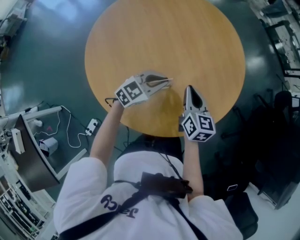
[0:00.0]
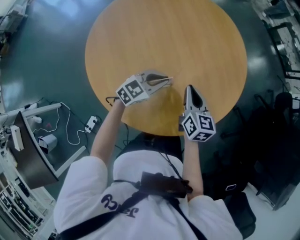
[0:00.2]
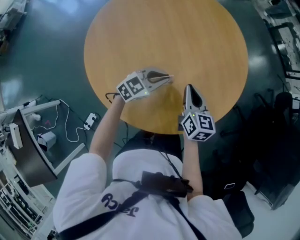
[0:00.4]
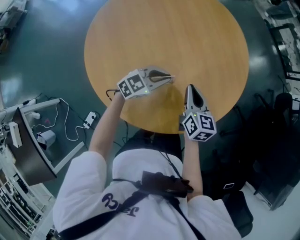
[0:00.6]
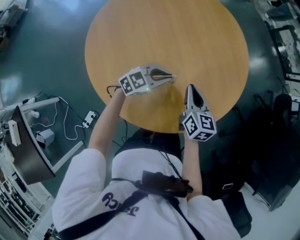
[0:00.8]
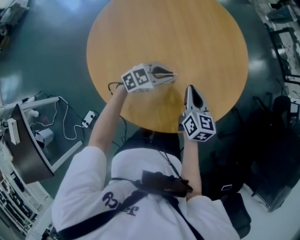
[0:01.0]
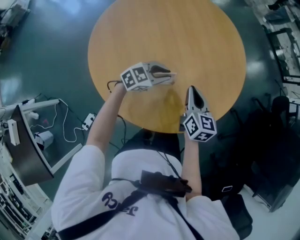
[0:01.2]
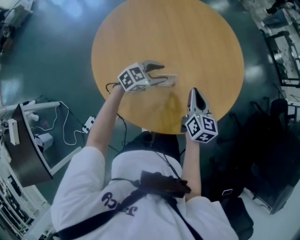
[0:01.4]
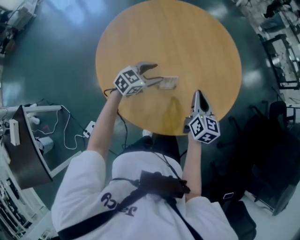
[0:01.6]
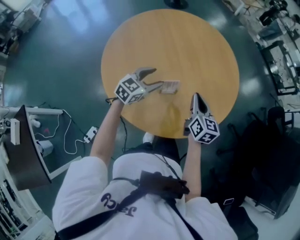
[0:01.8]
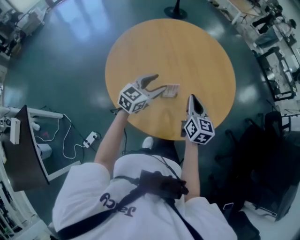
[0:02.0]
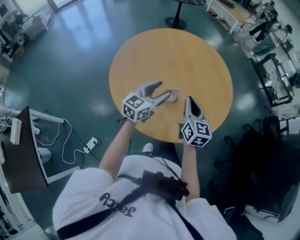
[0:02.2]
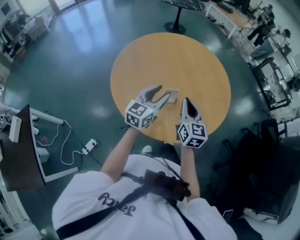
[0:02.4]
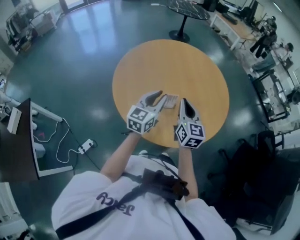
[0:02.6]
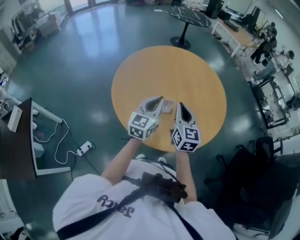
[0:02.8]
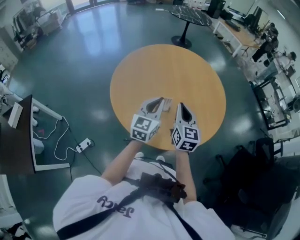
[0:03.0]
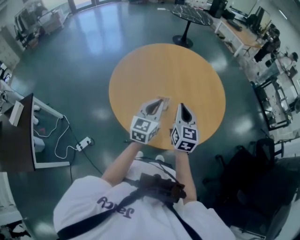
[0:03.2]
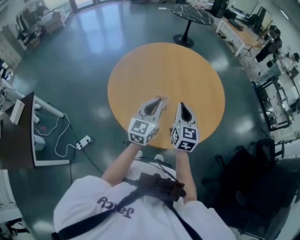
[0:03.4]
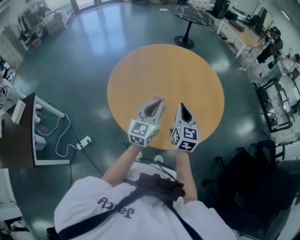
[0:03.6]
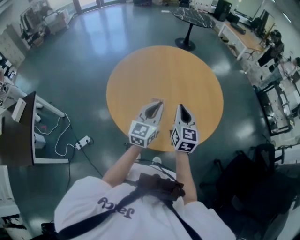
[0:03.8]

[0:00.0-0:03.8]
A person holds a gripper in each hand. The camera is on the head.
0:00.0 to 0:01.2: The grippers move only a little.
0:01.2 to 0:02.6: The grippers both shift upward by approximately 15 cm. The right gripper changes its angle by about 20 degrees. Meanwhile the left gripper rotates approximately 60 degrees, and opens, then closes once more.
0:02.6 to 0:03.8: Both grippers move to the right, approximately 5 cm.

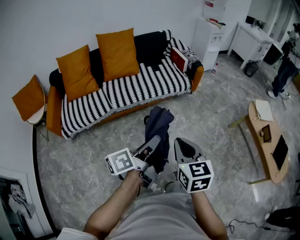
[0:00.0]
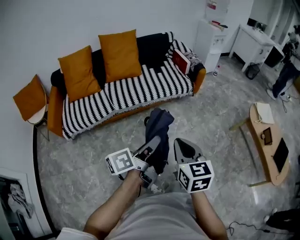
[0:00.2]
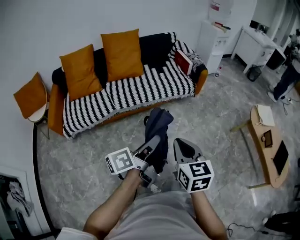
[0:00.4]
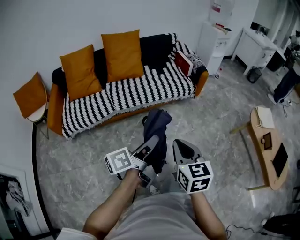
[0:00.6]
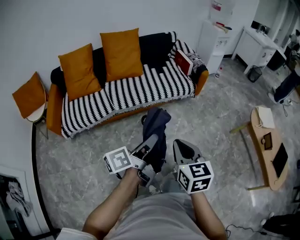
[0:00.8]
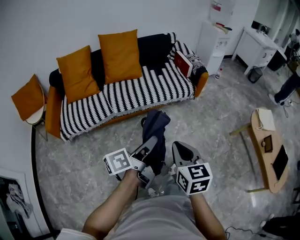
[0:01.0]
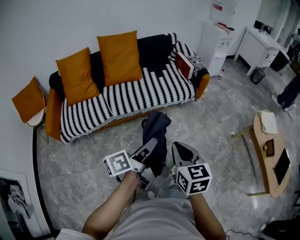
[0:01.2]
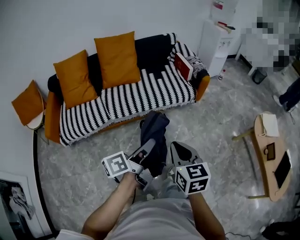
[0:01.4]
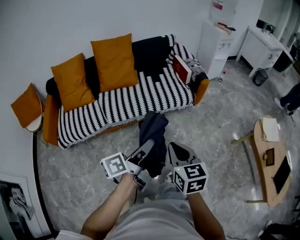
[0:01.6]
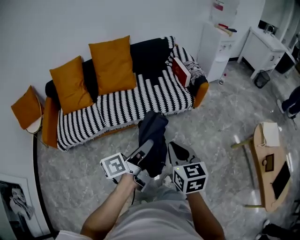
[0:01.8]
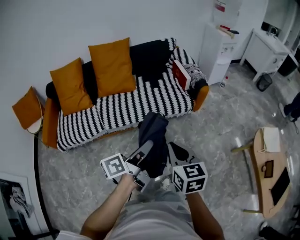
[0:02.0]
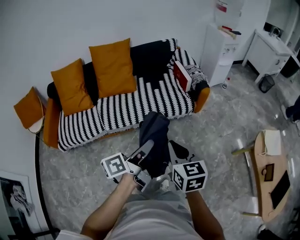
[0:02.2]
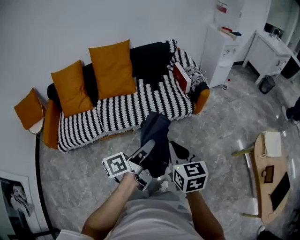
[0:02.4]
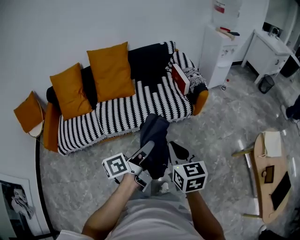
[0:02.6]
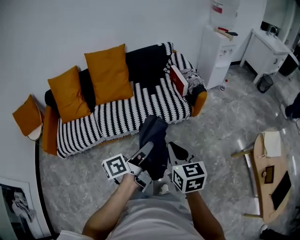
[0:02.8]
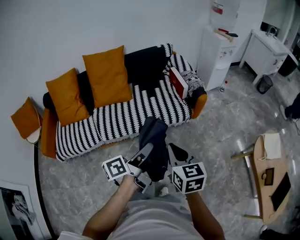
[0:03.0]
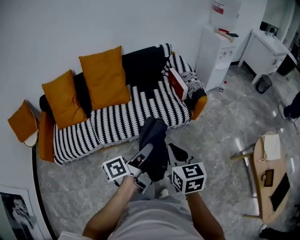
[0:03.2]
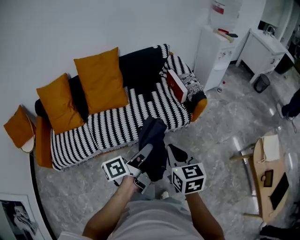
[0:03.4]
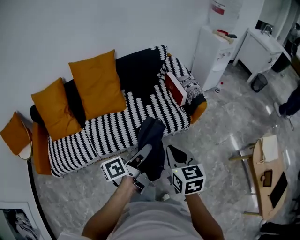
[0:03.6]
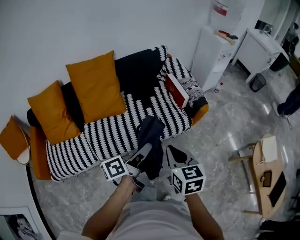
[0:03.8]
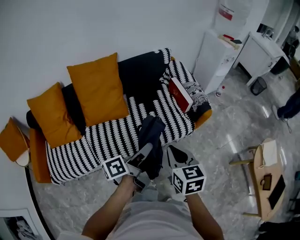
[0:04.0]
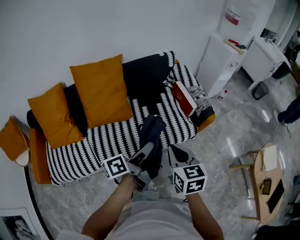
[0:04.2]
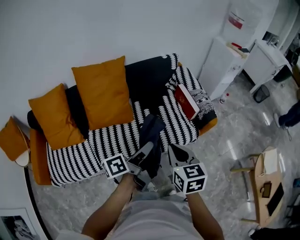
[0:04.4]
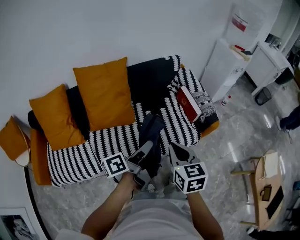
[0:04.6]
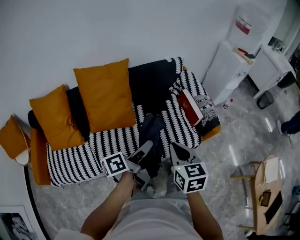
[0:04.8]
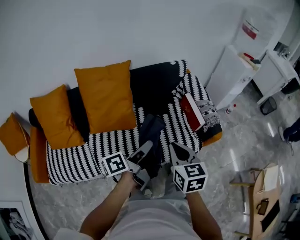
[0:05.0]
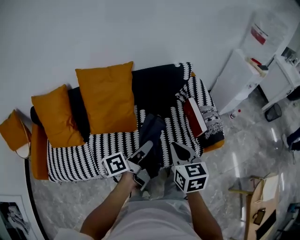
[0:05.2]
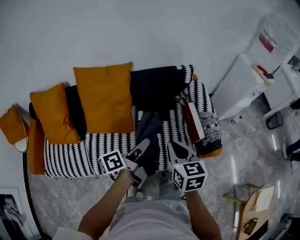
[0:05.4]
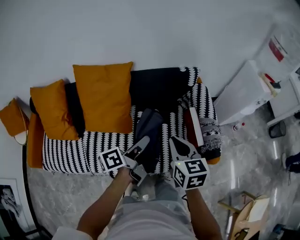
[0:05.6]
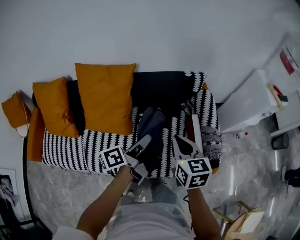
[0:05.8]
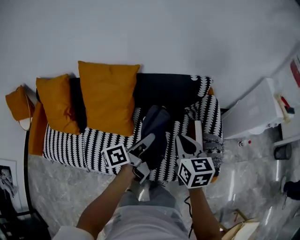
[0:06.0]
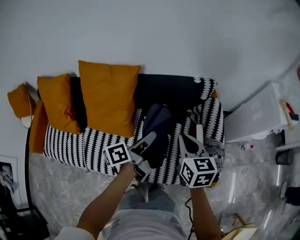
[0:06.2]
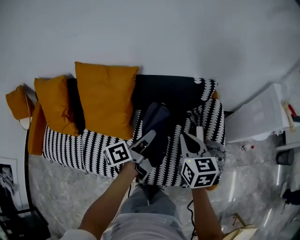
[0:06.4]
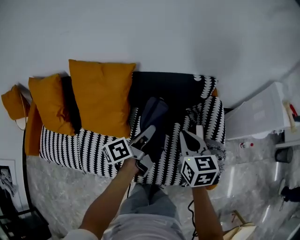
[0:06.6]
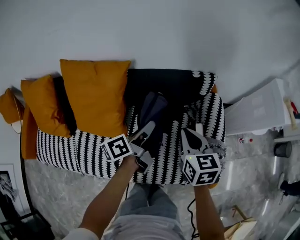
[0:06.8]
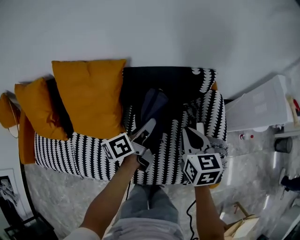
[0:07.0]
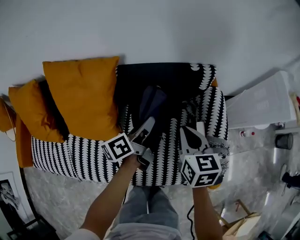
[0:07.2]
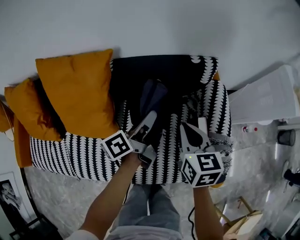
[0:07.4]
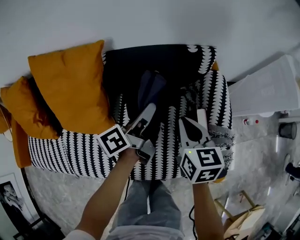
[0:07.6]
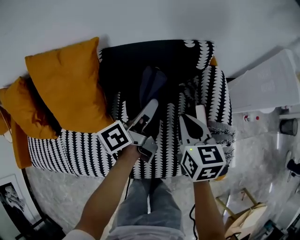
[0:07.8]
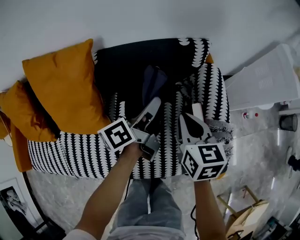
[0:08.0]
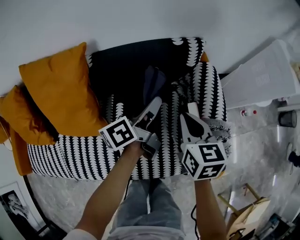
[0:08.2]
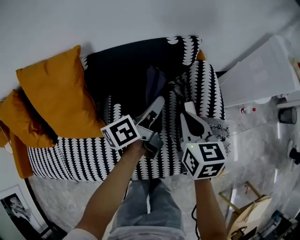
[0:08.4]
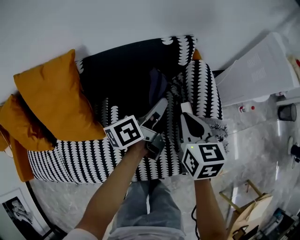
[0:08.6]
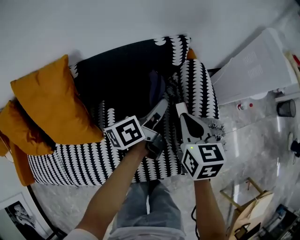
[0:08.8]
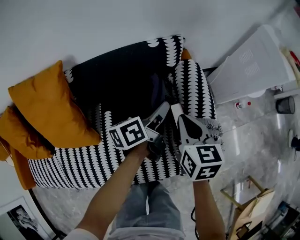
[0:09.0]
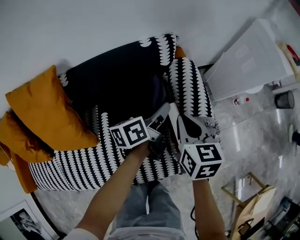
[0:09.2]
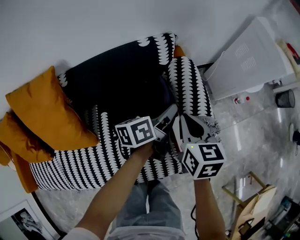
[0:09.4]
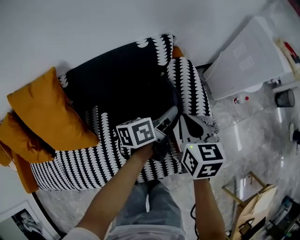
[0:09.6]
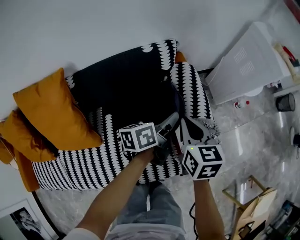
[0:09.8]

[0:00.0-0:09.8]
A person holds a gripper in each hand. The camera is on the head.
0:00.0 to 0:01.4: The grippers both shift forward by approximately 15 cm.
0:01.4 to 0:02.8: Both grippers move forward and to the right, about 20 cm.
0:02.8 to 0:04.2: Both grippers move forward and to the left, roughly 30 cm.
0:04.2 to 0:05.6: The two grippers go roughly 25 cm forward.
0:05.6 to 0:07.0: Both grippers move forward and downward, approximately 25 cm.
0:07.0 to 0:08.4: The right gripper is displaced downward and to the right by roughly 10 cm; the left gripper moves to the right and downward, approximately 15 cm.
0:08.4 to 0:09.8: The left gripper goes some 15 cm to the right, and turns by approximately 20 degrees, while the right gripper goes approximately 10 cm to the right.

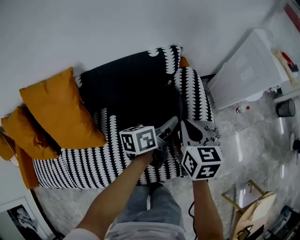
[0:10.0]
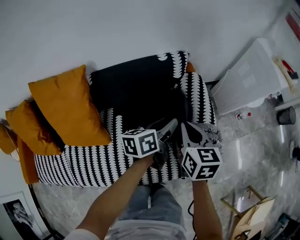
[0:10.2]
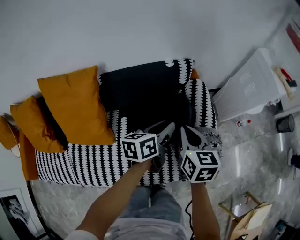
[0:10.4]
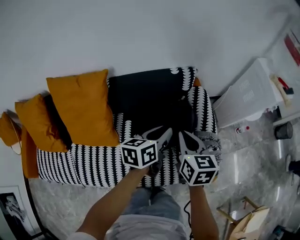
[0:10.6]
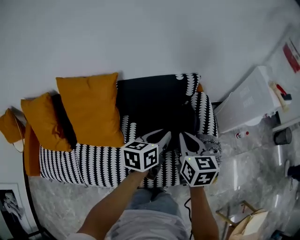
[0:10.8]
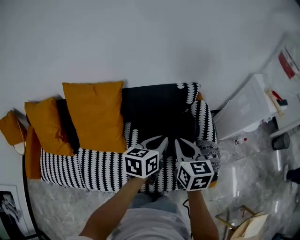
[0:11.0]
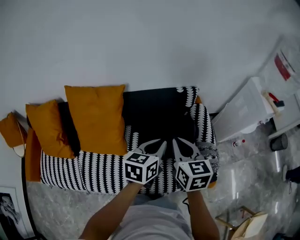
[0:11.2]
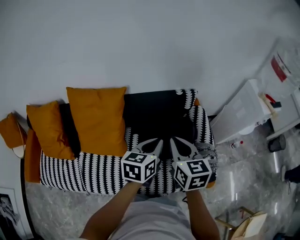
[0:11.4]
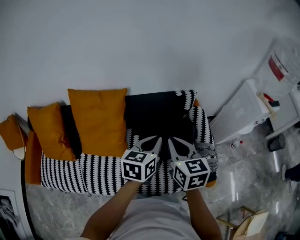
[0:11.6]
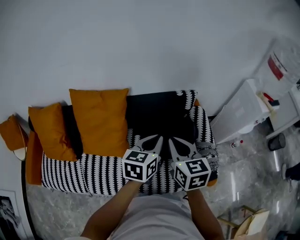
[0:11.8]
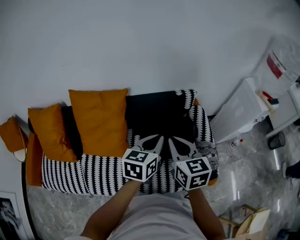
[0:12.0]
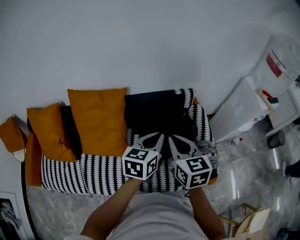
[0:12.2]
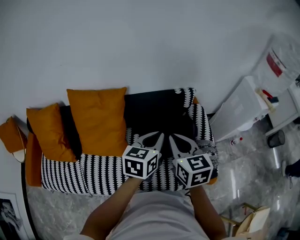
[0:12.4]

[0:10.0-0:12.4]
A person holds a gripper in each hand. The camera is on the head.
0:10.0 to 0:11.2: Both grippers move upward, to the left and backward, some 25 cm. The left gripper turns by about 30 degrees, and closes.
0:11.2 to 0:12.4: The grippers stay close to where they were, moving slightly.

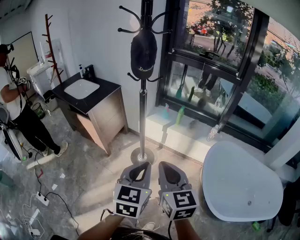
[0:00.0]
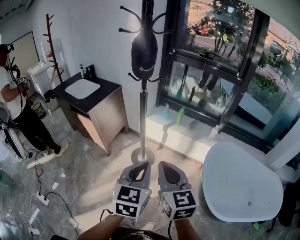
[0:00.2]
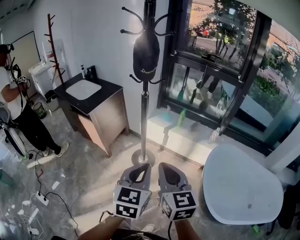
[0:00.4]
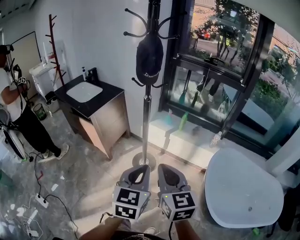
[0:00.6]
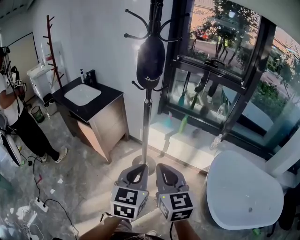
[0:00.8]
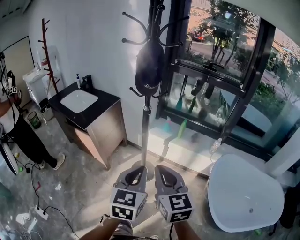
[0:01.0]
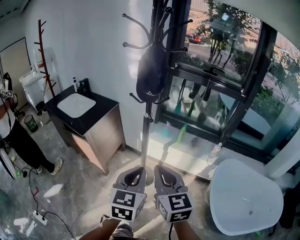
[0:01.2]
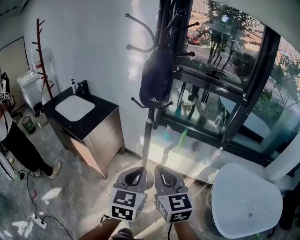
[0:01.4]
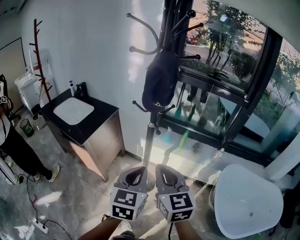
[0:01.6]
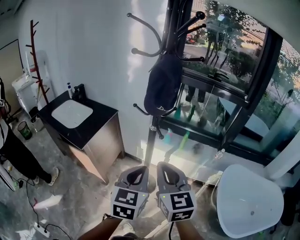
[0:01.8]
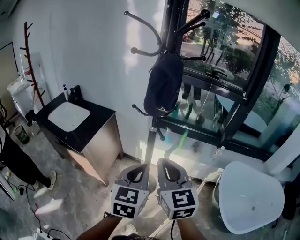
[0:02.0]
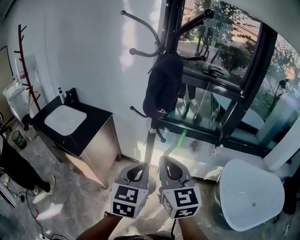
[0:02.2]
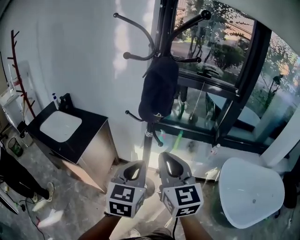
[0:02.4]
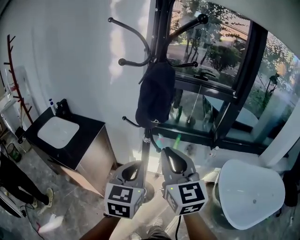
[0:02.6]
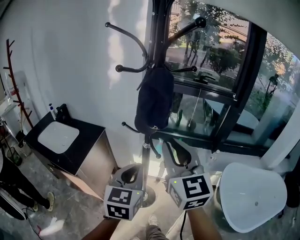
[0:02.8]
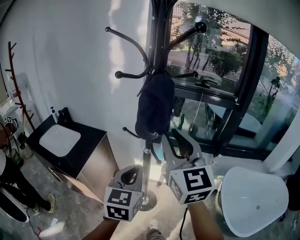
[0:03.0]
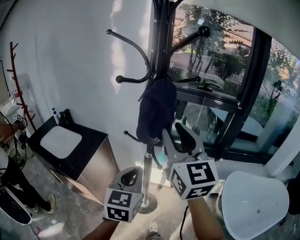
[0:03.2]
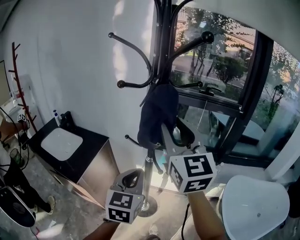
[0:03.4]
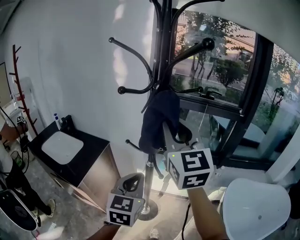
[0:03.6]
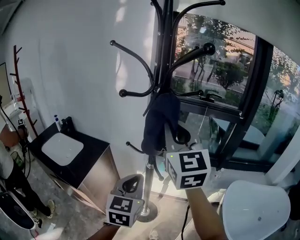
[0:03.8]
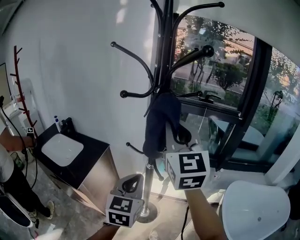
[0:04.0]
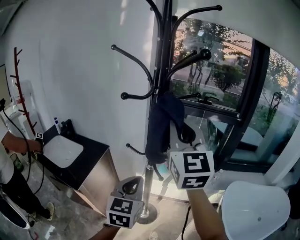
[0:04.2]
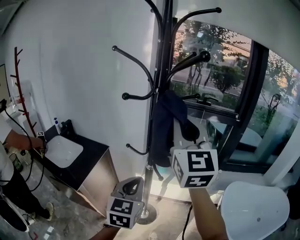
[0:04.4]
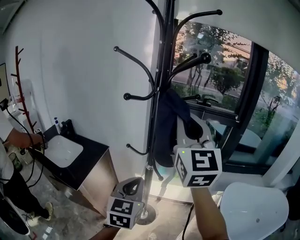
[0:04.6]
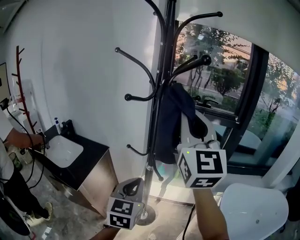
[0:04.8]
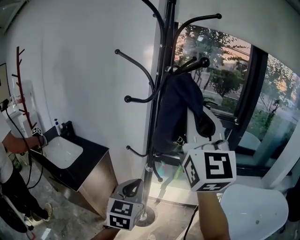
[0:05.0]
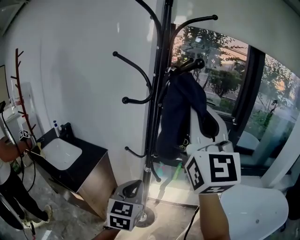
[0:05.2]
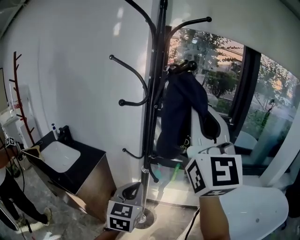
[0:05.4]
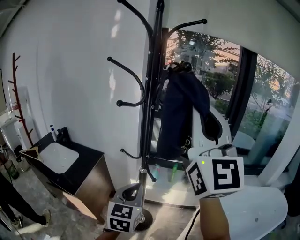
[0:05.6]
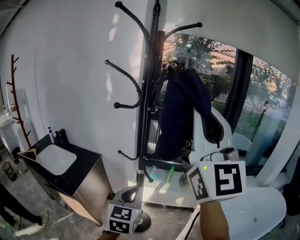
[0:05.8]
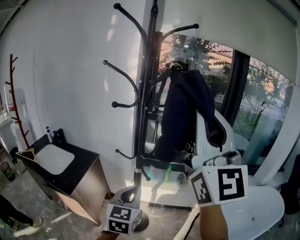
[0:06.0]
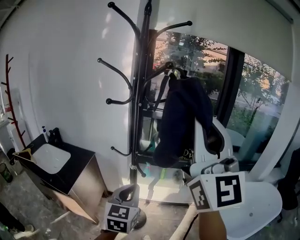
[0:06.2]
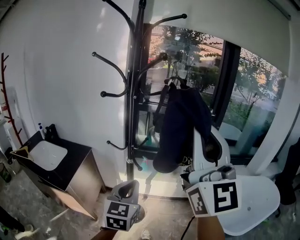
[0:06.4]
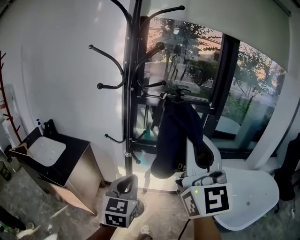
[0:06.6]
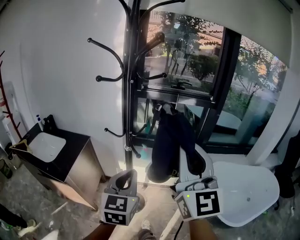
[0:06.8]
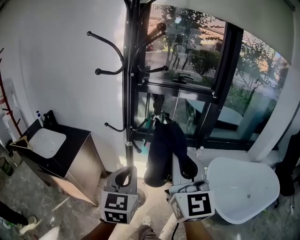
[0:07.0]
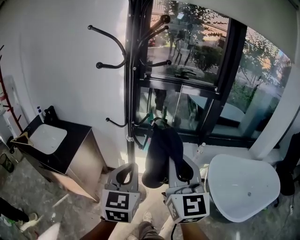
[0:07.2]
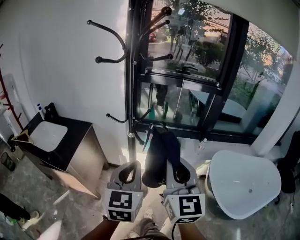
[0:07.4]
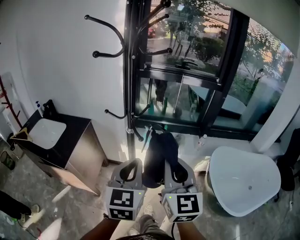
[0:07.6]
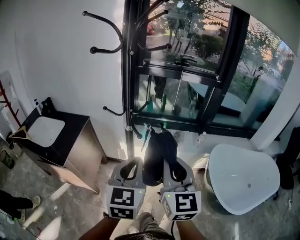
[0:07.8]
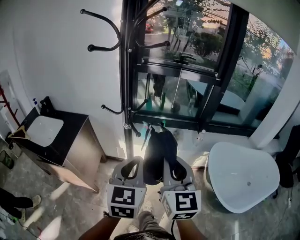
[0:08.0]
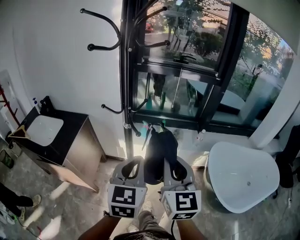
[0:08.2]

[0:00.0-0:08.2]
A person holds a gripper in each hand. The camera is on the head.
0:00.0 to 0:01.6: Both grippers move forward and to the left, about 20 cm.
0:01.6 to 0:03.2: The left gripper goes approximately 15 cm forward, while the right gripper is displaced upward and forward by roughly 25 cm, swivels about 20 degrees, and opens up.
0:03.2 to 0:05.0: The right gripper heads upward, covering about 15 cm, swivels about 20 degrees, and closes its fingers.
0:05.0 to 0:06.6: The right gripper heads backward, to the right and downward, covering roughly 15 cm. The left gripper heads to the right and backward, covering approximately 10 cm.
0:06.6 to 0:08.2: The right gripper moves downward, about 25 cm, and turns by roughly 30 degrees.
